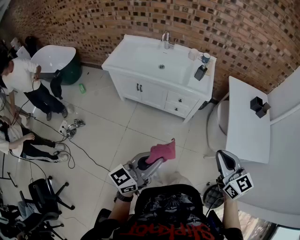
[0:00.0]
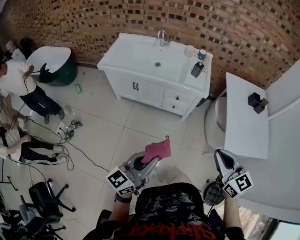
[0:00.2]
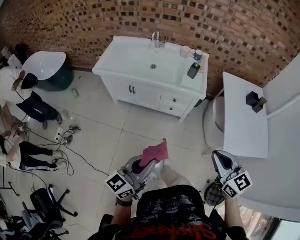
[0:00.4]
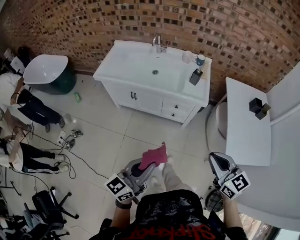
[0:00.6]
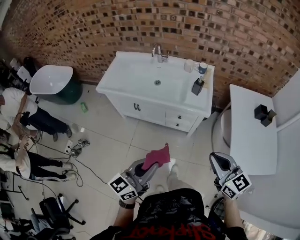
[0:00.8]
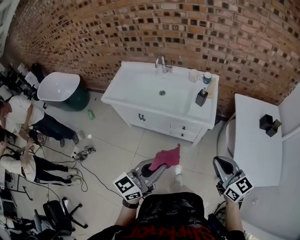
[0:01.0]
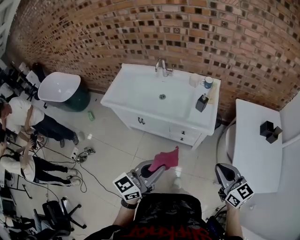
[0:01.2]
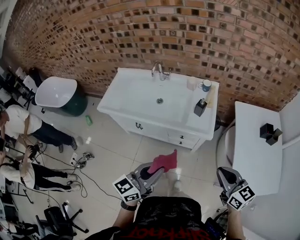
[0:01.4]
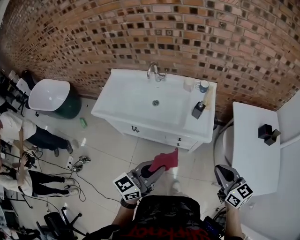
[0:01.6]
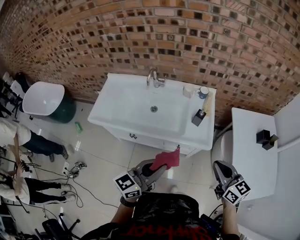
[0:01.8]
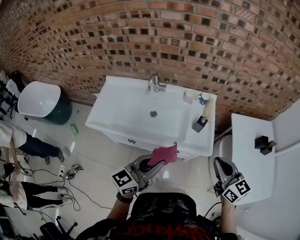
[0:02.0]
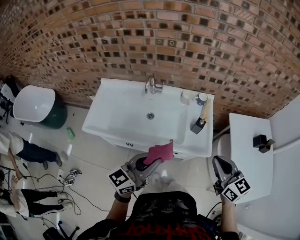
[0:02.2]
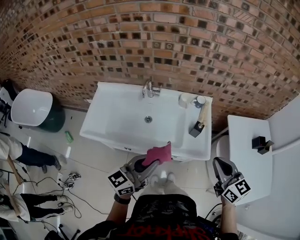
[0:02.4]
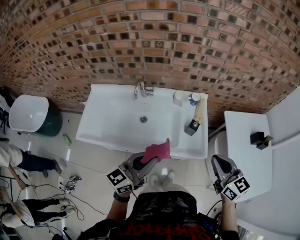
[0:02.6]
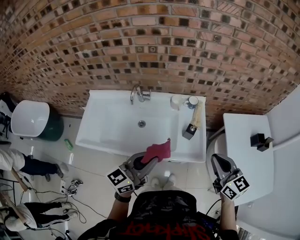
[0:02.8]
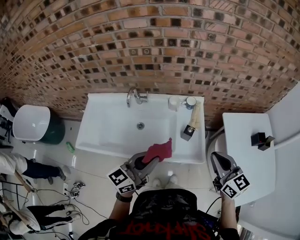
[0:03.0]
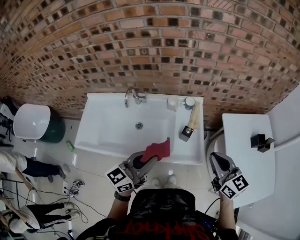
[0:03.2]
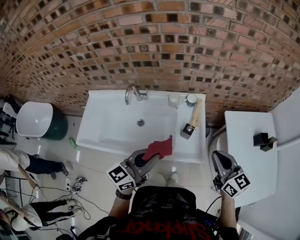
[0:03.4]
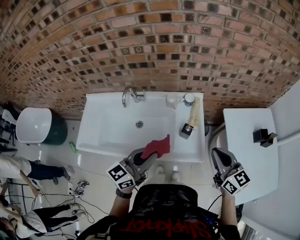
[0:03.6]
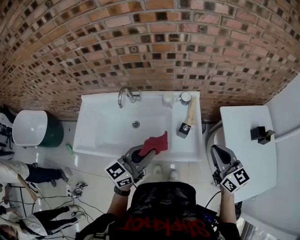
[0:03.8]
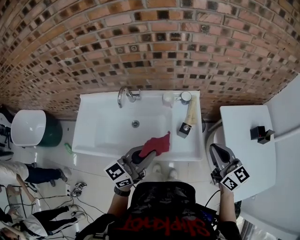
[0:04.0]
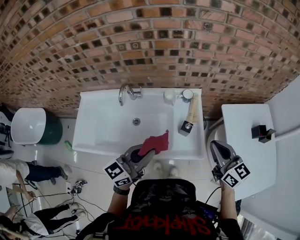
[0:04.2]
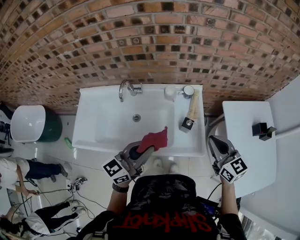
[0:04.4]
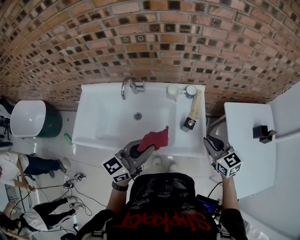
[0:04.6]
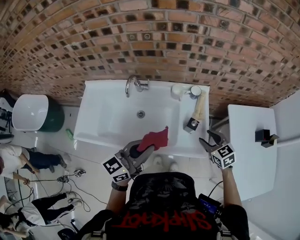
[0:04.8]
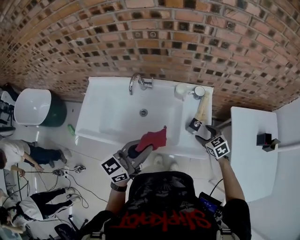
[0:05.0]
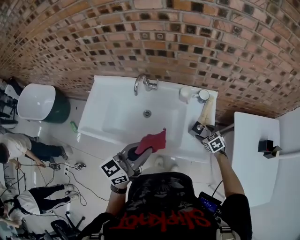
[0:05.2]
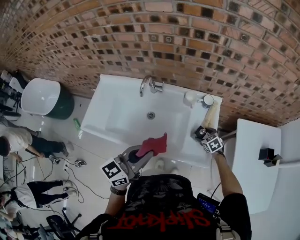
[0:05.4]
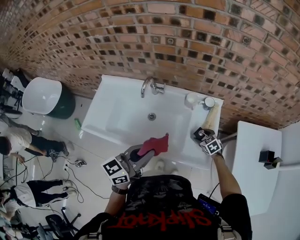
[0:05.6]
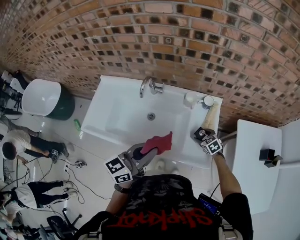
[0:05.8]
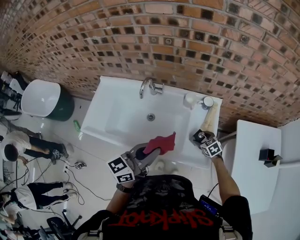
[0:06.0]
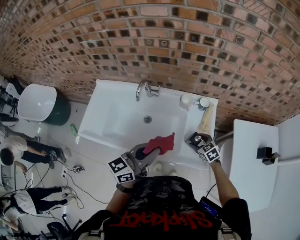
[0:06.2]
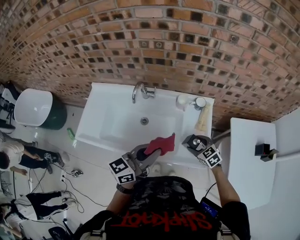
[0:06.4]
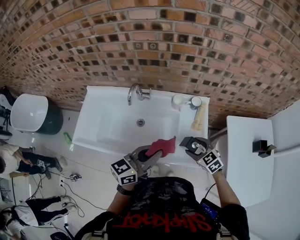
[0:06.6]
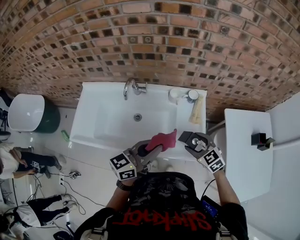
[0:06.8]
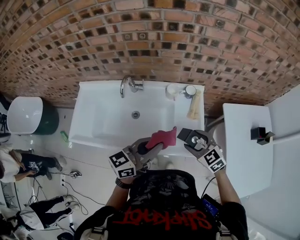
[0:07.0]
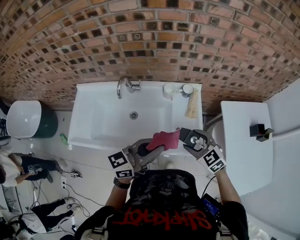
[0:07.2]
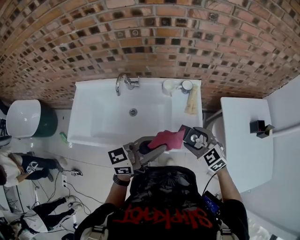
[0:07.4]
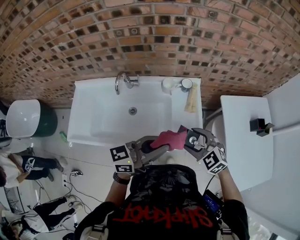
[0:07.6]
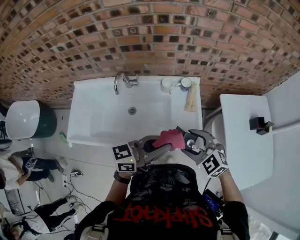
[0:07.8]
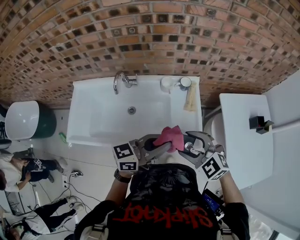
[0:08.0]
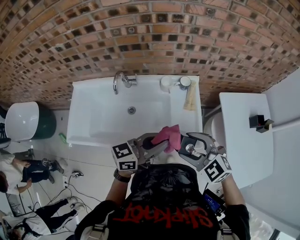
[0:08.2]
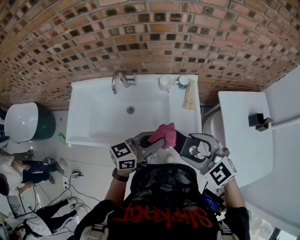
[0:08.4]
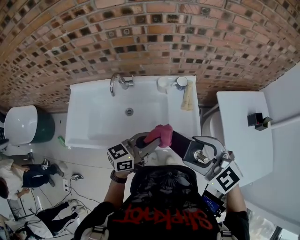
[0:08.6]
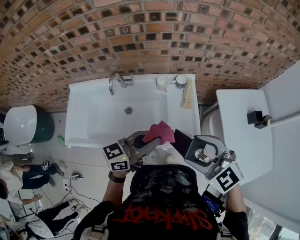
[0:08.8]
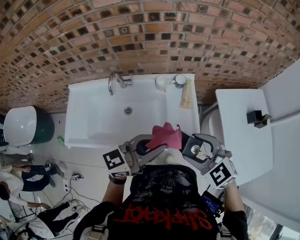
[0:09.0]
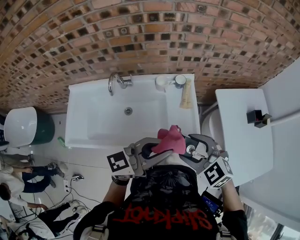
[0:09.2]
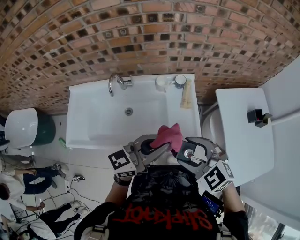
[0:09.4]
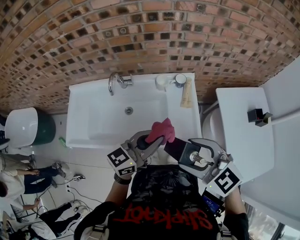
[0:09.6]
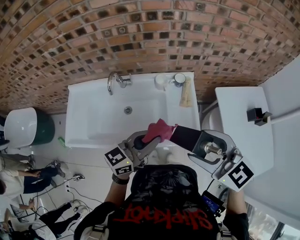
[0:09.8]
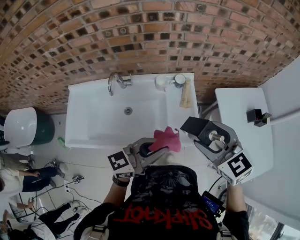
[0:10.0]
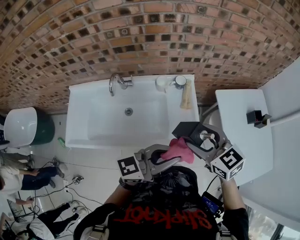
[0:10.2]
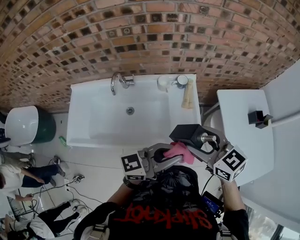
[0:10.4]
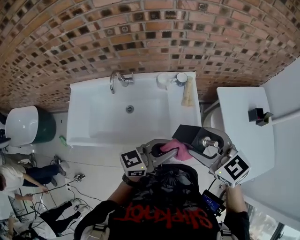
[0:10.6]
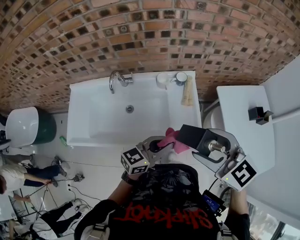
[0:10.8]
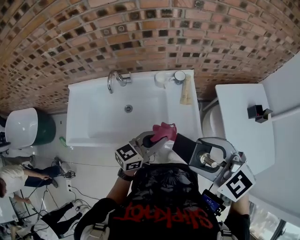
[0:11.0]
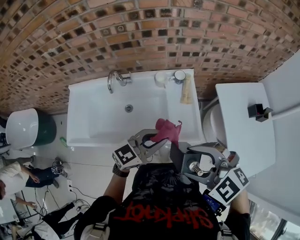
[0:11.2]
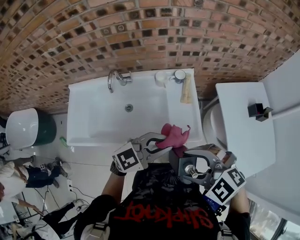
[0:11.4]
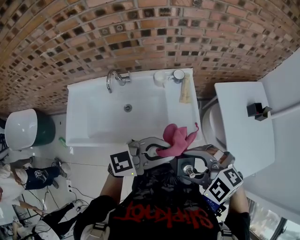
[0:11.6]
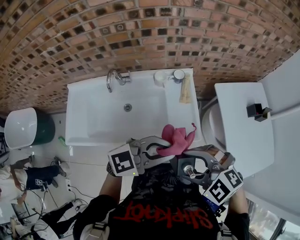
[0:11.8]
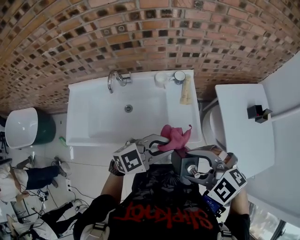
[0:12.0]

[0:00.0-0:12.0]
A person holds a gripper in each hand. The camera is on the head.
0.0 to 1.6 s: Both grippers move forward, about 30 cm.
1.6 to 3.0 s: Both grippers travel together forward, some 20 cm.
3.0 to 4.4 s: Both grippers travel together forward, roughly 5 cm.
4.4 to 6.0 s: The right gripper is displaced downward by some 30 cm, points its fingers about 40 degrees further downward, and opens.
6.0 to 7.6 s: The left gripper heads to the right, covering approximately 10 cm, and swivels roughly 30 degrees; the right gripper travels upward and backward by approximately 25 cm, and changes its angle by about 20 degrees.
7.6 to 9.0 s: The left gripper goes downward and returns, about 5 cm each way; the right gripper shifts some 10 cm upward.
9.0 to 10.4 s: The left gripper travels to the right by some 5 cm, while the right gripper reaches roughly 10 cm upward, then returns, and rotates approximately 30 degrees.
10.4 to 12.0 s: The right gripper moves approximately 10 cm, and rotates roughly 40 degrees, while the left gripper goes up and down, approximately 10 cm each way, reversing 2 times, and turns by approximately 40 degrees.

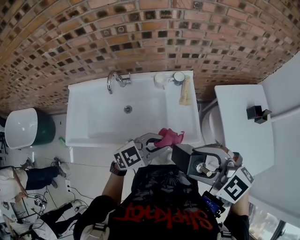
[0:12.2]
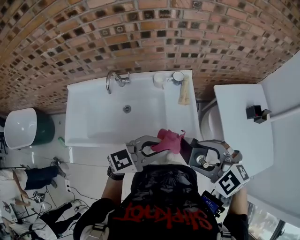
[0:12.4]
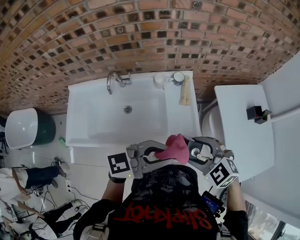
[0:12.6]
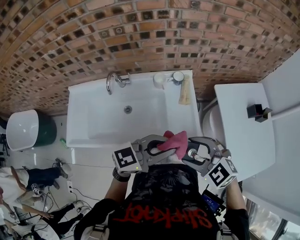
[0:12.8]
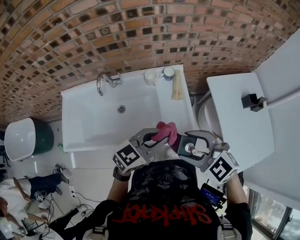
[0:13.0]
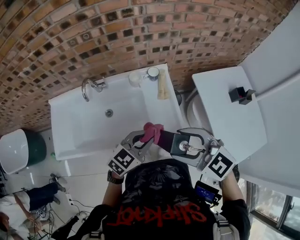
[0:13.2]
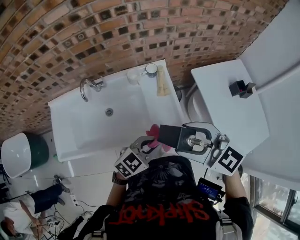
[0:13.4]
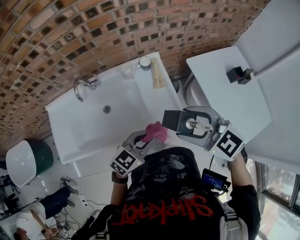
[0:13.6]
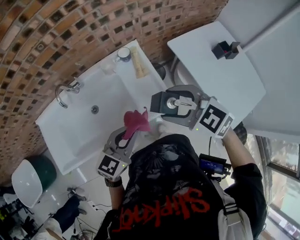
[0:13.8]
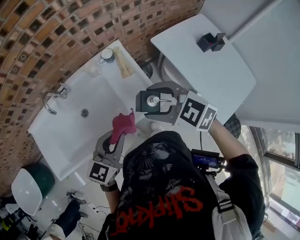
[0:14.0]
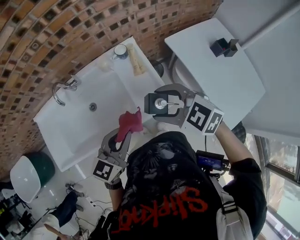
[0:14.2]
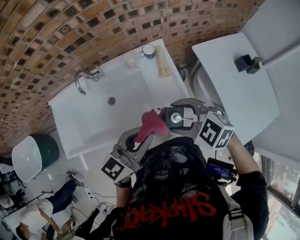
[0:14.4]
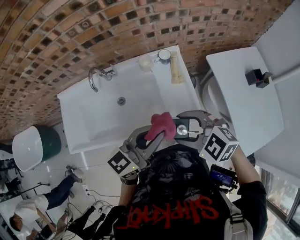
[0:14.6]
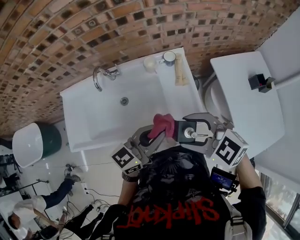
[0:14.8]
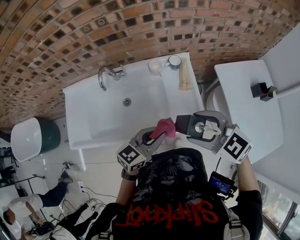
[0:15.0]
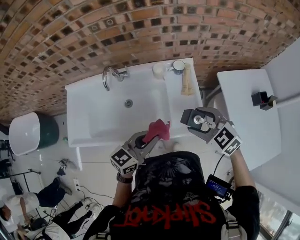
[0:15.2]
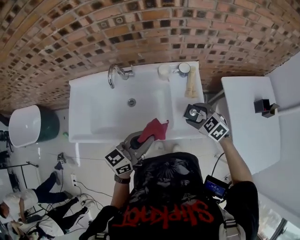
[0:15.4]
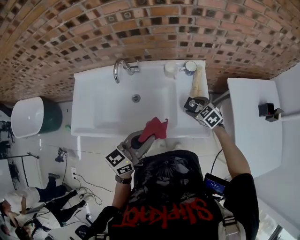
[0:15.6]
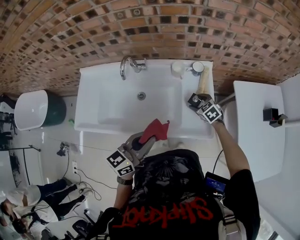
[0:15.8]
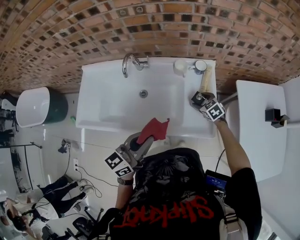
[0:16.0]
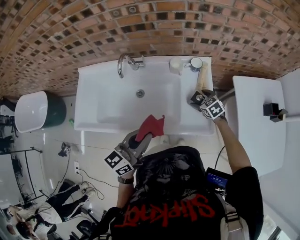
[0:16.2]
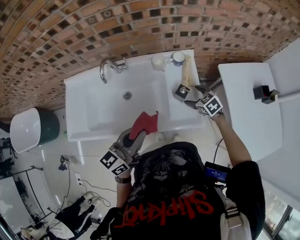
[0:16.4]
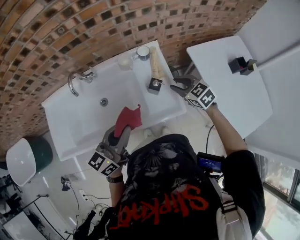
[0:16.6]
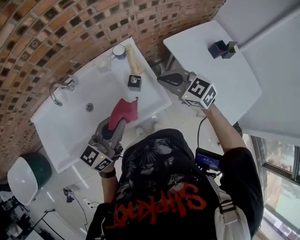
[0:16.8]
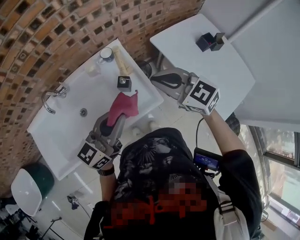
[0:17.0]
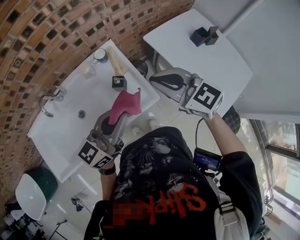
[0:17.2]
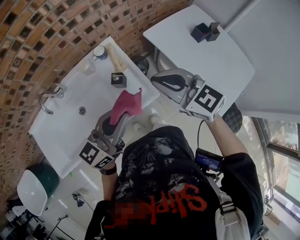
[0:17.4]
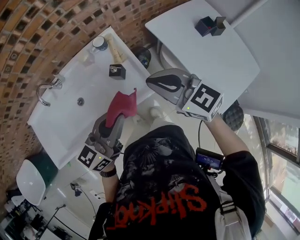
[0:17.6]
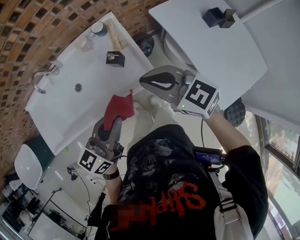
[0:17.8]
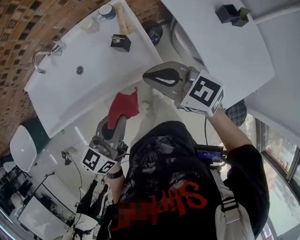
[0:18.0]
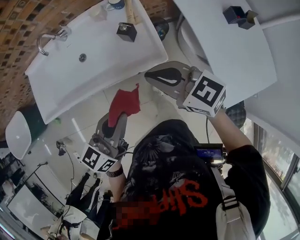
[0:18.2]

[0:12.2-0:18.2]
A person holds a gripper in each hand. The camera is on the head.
12.2 to 13.8 s: The left gripper moves roughly 10 cm upward and comes back, while the right gripper moves up and down over some 10 cm, changing direction 2 times, and rotates approximately 30 degrees.
13.8 to 15.2 s: The right gripper is displaced downward by roughly 5 cm. The left gripper travels upward and back again, roughly 5 cm each way.
15.2 to 16.6 s: The right gripper goes roughly 15 cm downward, forward and to the right, and closes up.
16.6 to 18.2 s: The left gripper shifts some 20 cm backward and to the right. The right gripper is displaced backward and upward by approximately 25 cm, turns by some 30 degrees, and closes its fingers.

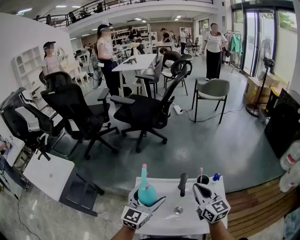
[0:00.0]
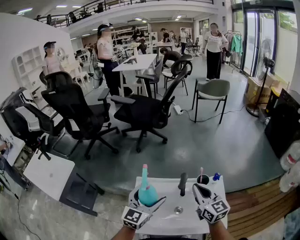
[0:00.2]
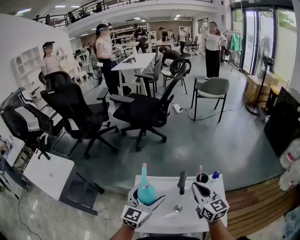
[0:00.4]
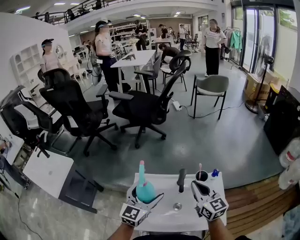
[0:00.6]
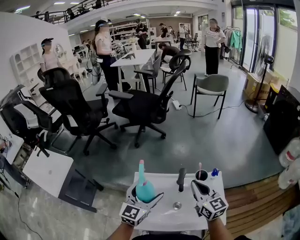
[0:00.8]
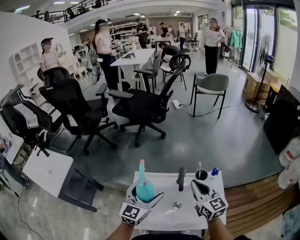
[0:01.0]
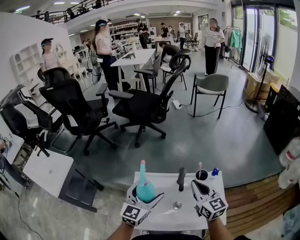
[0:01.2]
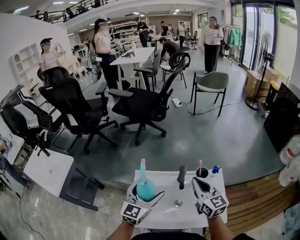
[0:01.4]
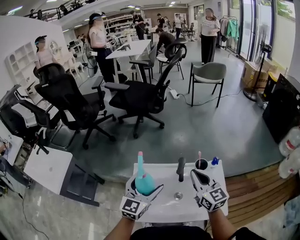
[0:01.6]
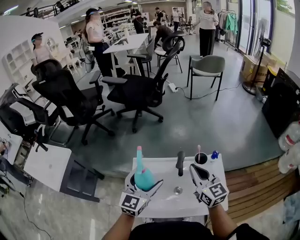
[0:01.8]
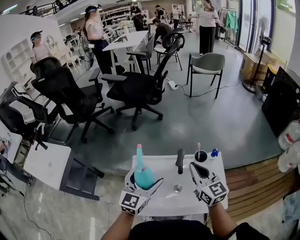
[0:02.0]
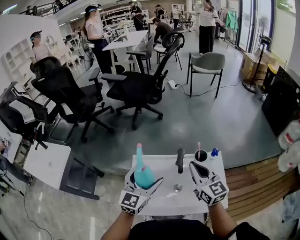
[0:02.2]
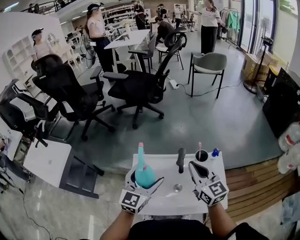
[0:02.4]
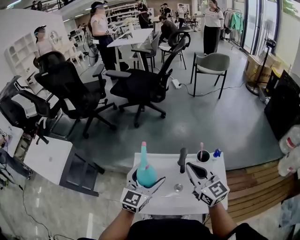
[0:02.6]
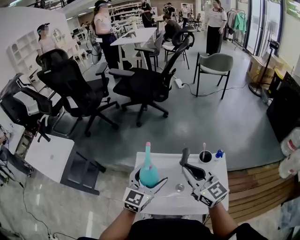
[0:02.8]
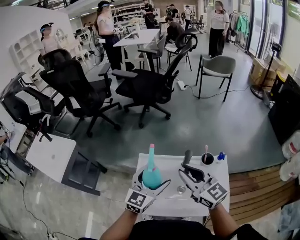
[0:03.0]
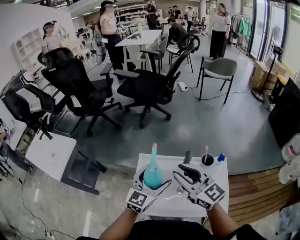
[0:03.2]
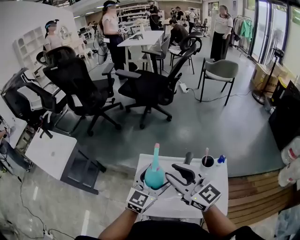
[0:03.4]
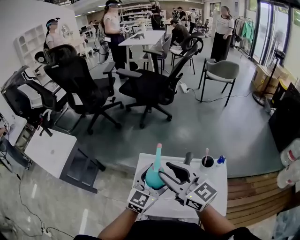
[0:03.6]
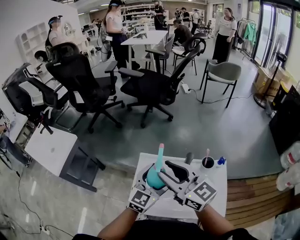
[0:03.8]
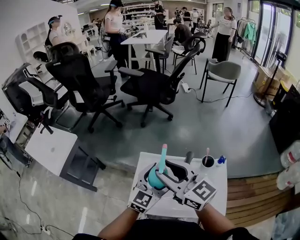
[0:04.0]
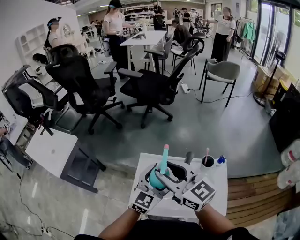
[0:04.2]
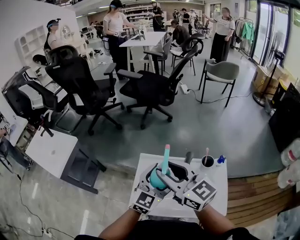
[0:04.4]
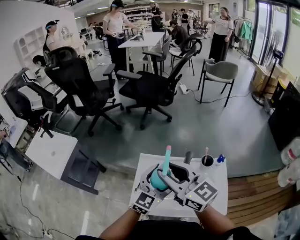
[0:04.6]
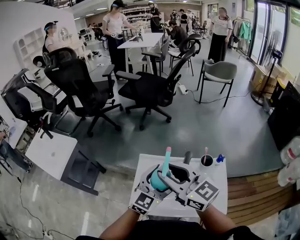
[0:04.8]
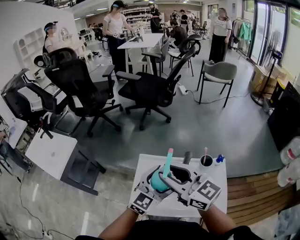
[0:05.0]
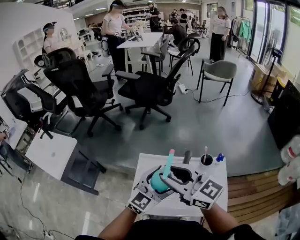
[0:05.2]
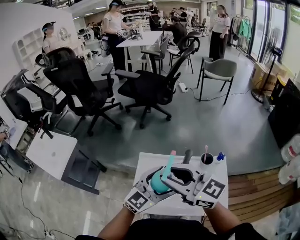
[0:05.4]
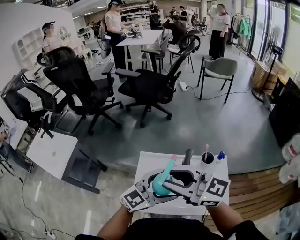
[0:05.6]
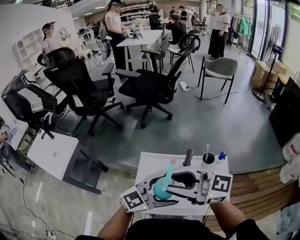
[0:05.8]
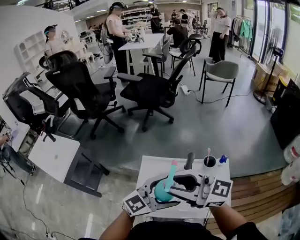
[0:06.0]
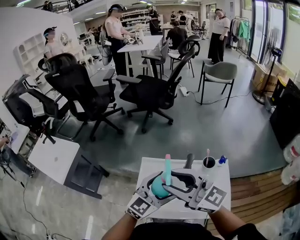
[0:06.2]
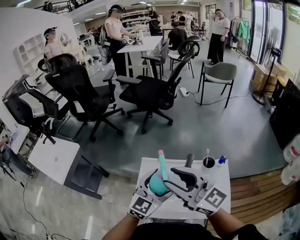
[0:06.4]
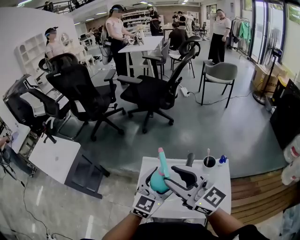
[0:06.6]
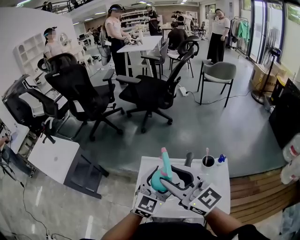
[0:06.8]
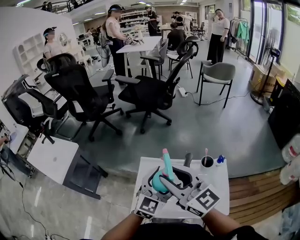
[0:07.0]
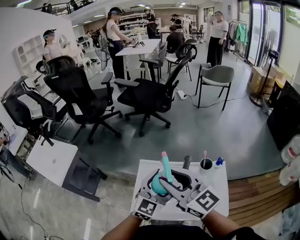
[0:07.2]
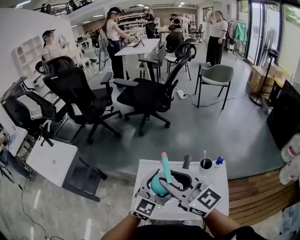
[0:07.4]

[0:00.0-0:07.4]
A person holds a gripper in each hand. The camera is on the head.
0.0 to 1.4 s: The two grippers keep their place.
1.4 to 3.0 s: The right gripper travels to the left by approximately 10 cm, and swivels roughly 20 degrees.
3.0 to 4.4 s: The right gripper shifts approximately 10 cm to the left and upward.
4.4 to 6.0 s: The right gripper ends up about 5 cm from where it was, and rotates roughly 30 degrees; the left gripper moves some 10 cm, and turns by about 30 degrees.
6.0 to 7.4 s: The left gripper shifts by about 5 cm, and swivels roughly 30 degrees; the right gripper rotates approximately 20 degrees.
